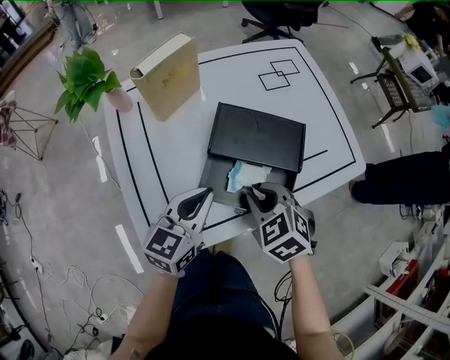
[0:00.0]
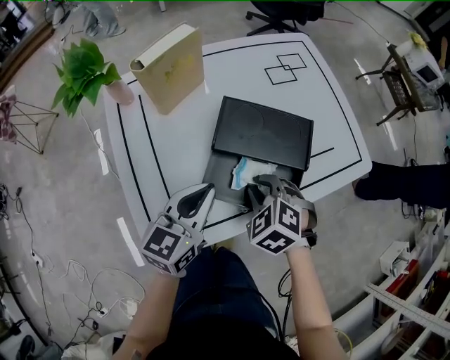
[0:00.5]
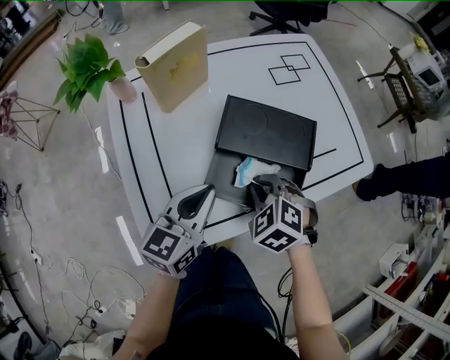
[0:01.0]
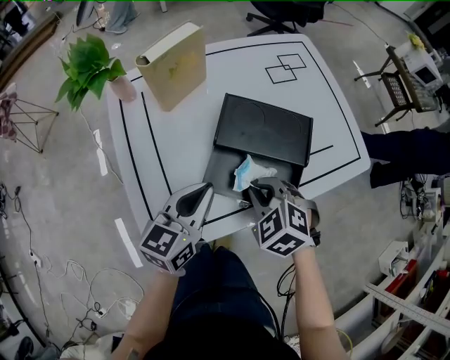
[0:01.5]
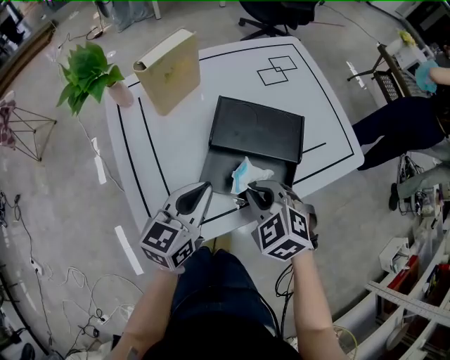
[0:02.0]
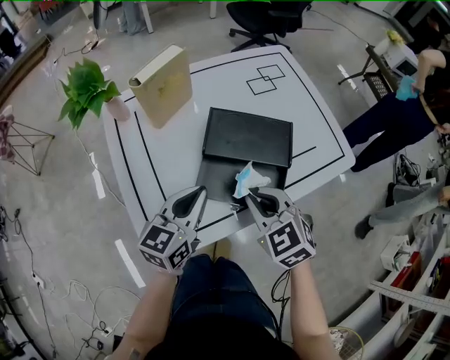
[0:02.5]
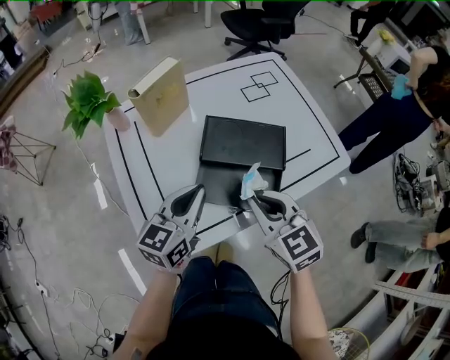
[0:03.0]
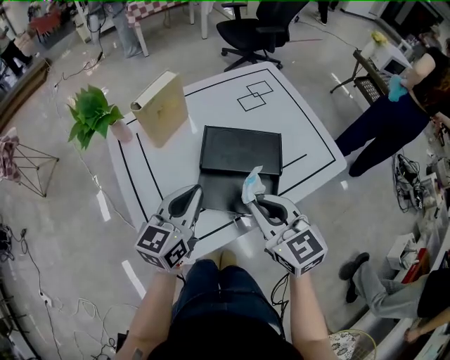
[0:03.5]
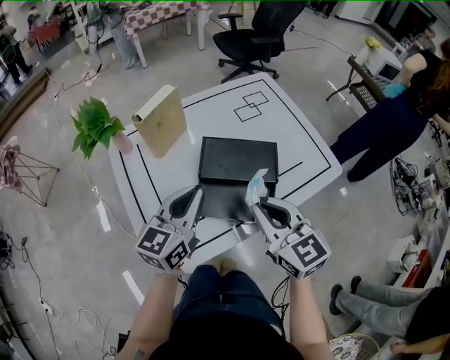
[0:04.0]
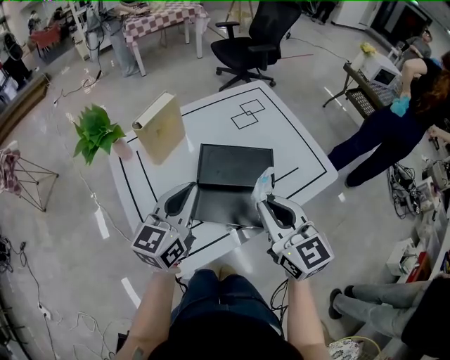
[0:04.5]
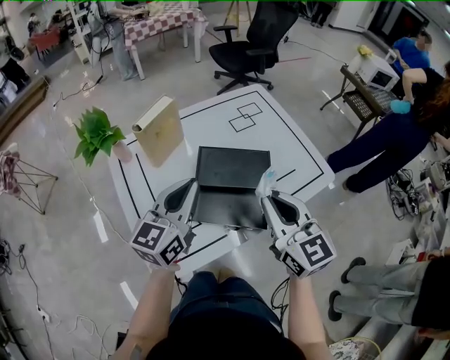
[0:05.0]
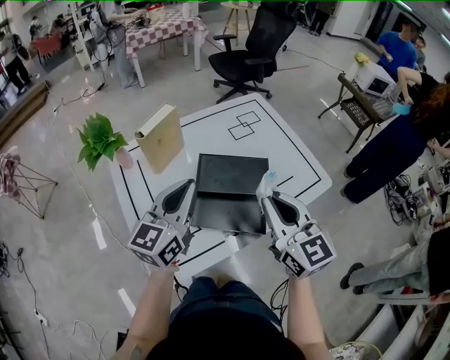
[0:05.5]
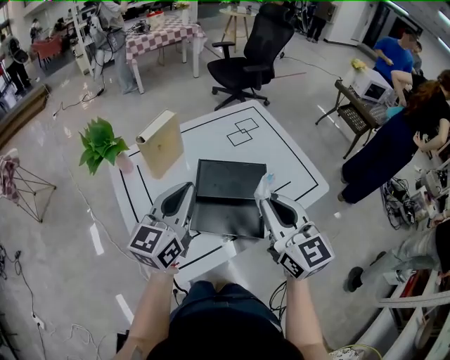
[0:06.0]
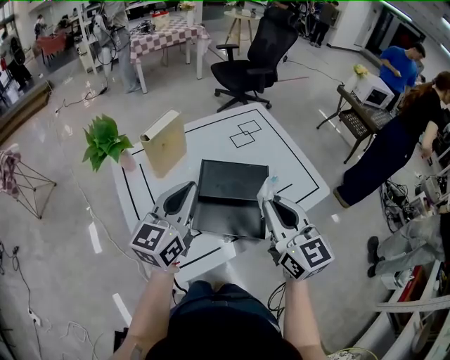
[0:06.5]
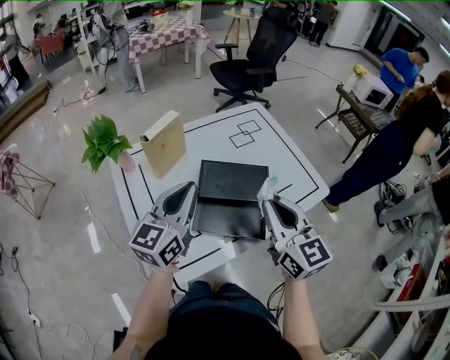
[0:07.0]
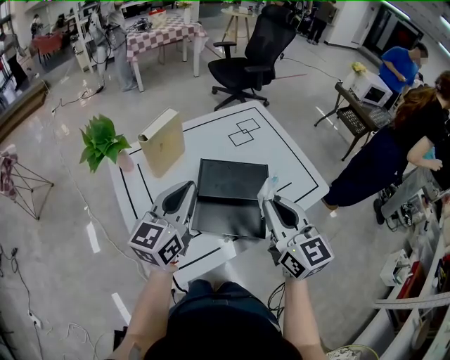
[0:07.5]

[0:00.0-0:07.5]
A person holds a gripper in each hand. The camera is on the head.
0:00.0 to 0:02.0: There are only small adjustments of the grippers.
0:02.0 to 0:04.0: The left gripper is displaced upward by some 10 cm. The right gripper shifts roughly 15 cm upward, and tilts its fingers about 40 degrees upward.
0:04.0 to 0:05.5: Both grippers move upward, about 5 cm.
0:05.5 to 0:07.5: Neither gripper changes place.

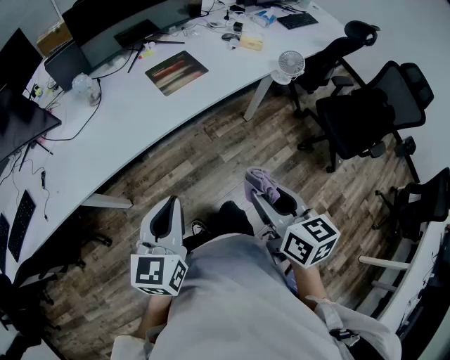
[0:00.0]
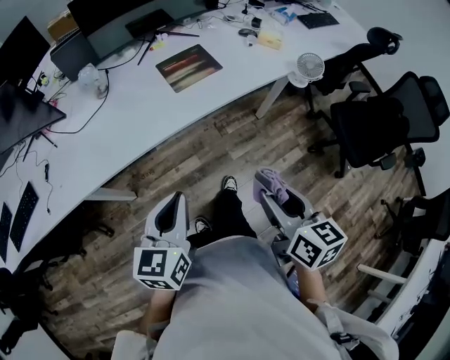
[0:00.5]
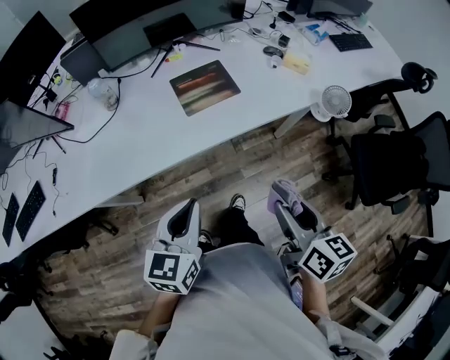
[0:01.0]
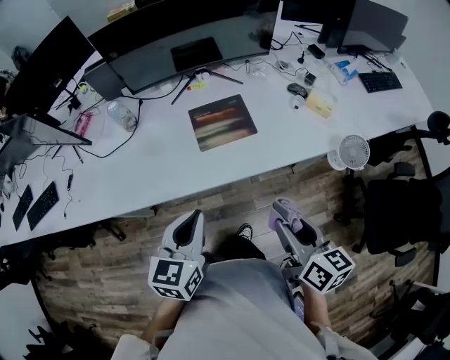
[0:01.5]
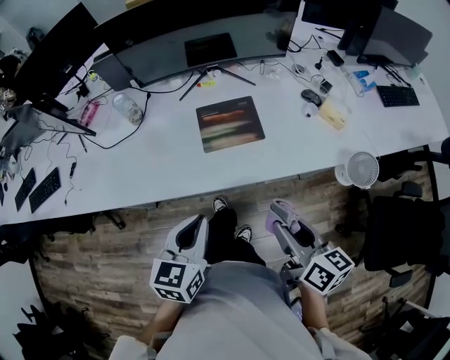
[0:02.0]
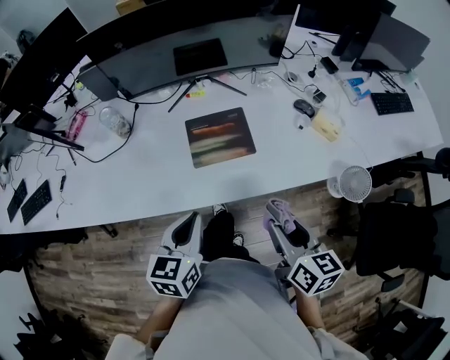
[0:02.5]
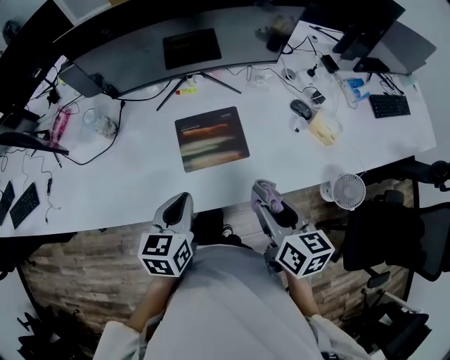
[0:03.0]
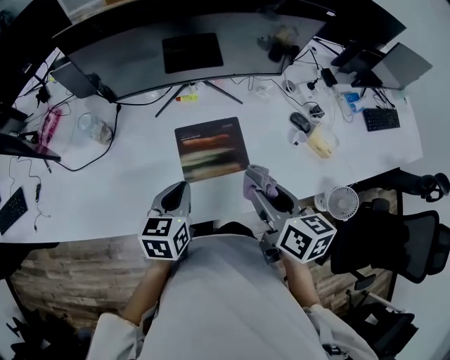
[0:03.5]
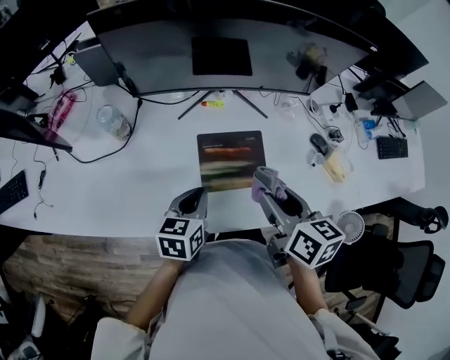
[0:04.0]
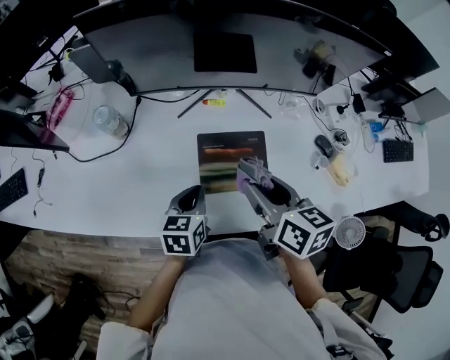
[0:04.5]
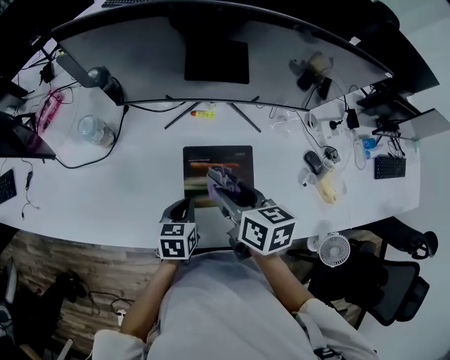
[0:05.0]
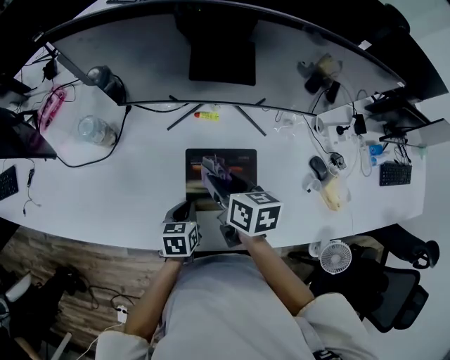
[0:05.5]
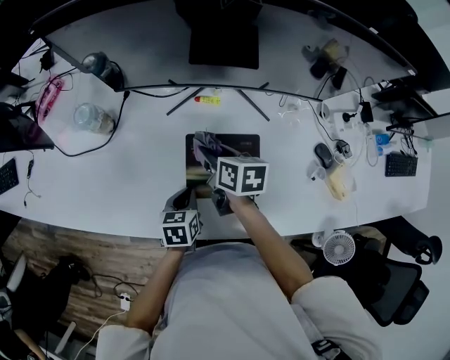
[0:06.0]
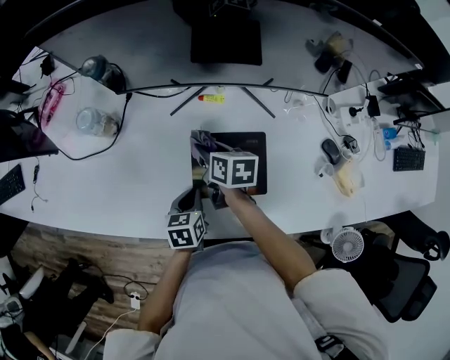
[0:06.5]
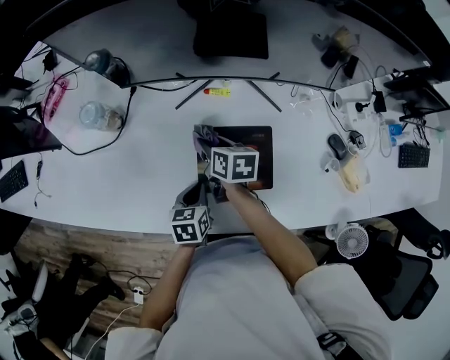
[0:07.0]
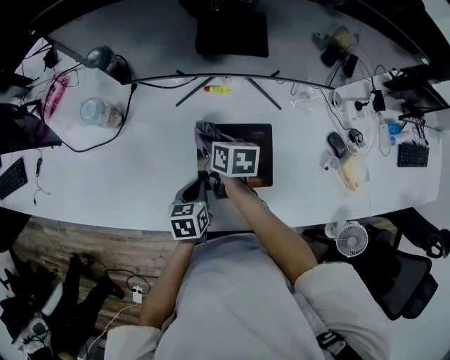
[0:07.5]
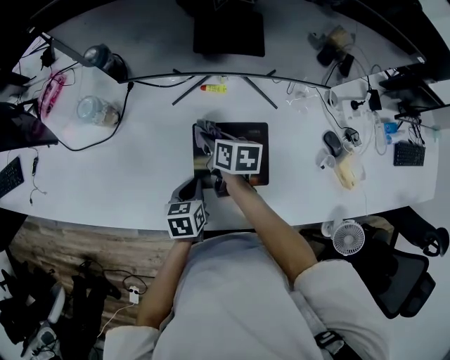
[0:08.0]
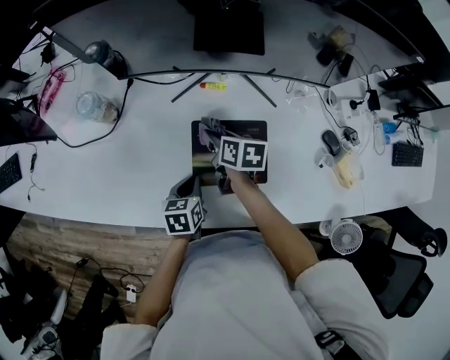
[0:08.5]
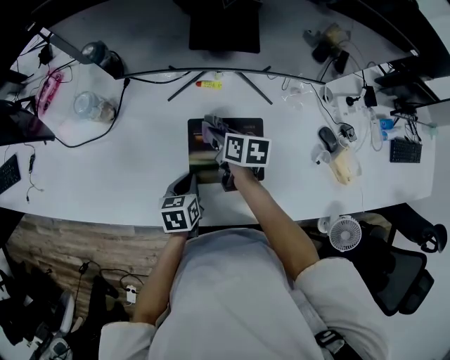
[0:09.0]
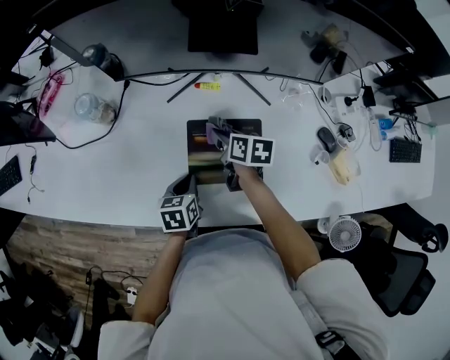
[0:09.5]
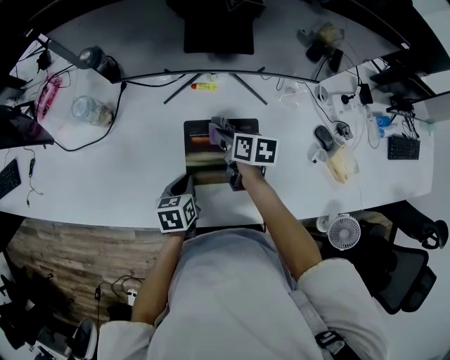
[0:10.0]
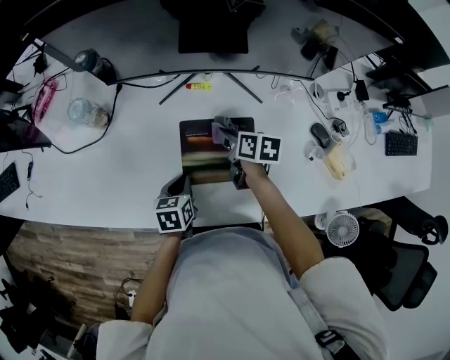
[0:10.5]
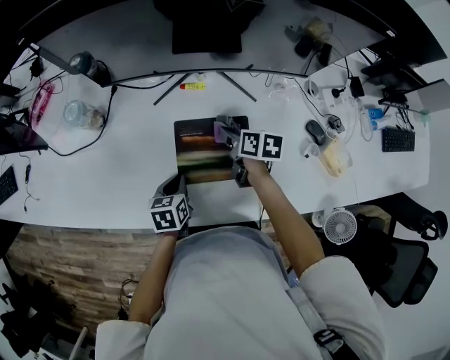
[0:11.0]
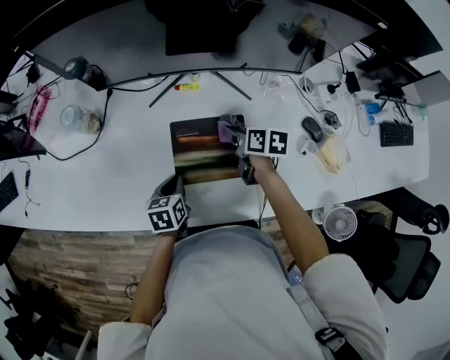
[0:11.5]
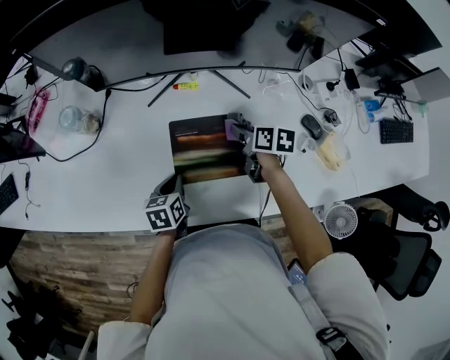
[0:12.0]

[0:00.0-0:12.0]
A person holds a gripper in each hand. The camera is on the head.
0:00.0 to 0:02.0: Both grippers move forward and to the right, approximately 30 cm. The left gripper turns by about 20 degrees. The right gripper rotates approximately 30 degrees.
0:02.0 to 0:04.0: The right gripper shifts about 30 cm forward. Meanwhile the left gripper goes roughly 25 cm forward and downward.
0:04.0 to 0:06.0: The left gripper travels downward by some 15 cm; the right gripper goes roughly 25 cm downward, forward and to the left.
0:06.0 to 0:08.0: The right gripper shifts by approximately 5 cm.
0:08.0 to 0:10.0: The right gripper heads to the right, covering approximately 5 cm.
0:10.0 to 0:12.0: The right gripper heads to the right, covering about 10 cm.

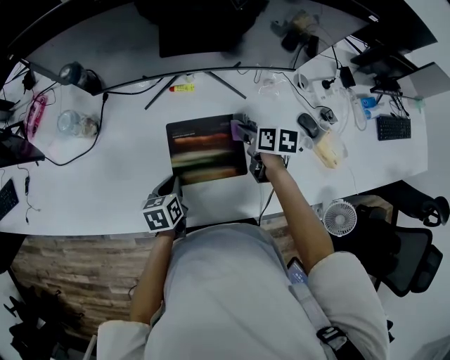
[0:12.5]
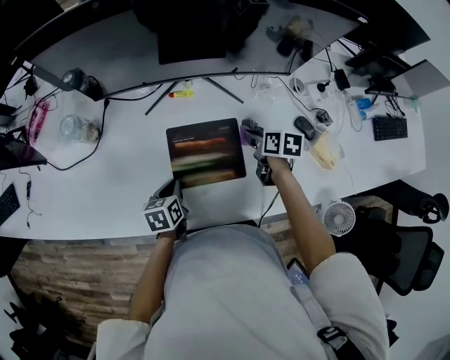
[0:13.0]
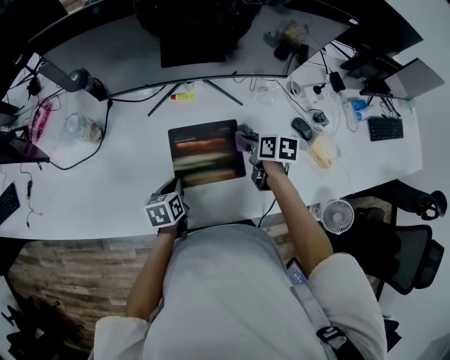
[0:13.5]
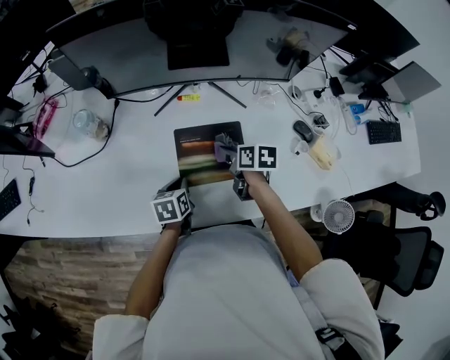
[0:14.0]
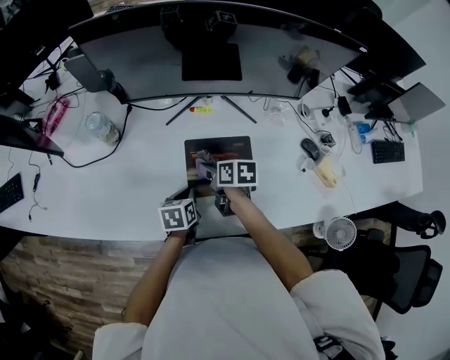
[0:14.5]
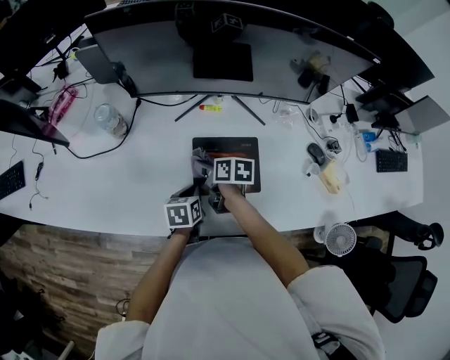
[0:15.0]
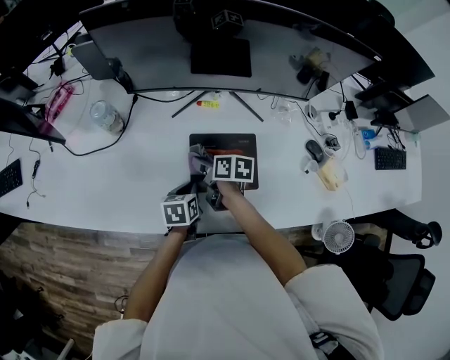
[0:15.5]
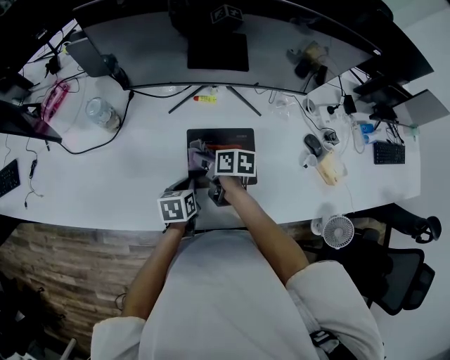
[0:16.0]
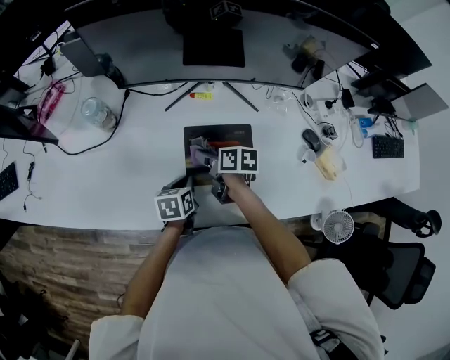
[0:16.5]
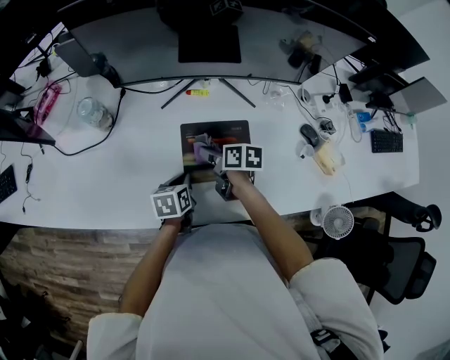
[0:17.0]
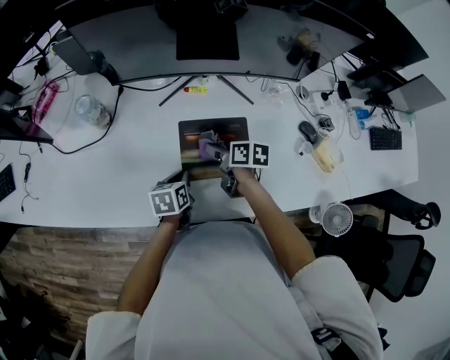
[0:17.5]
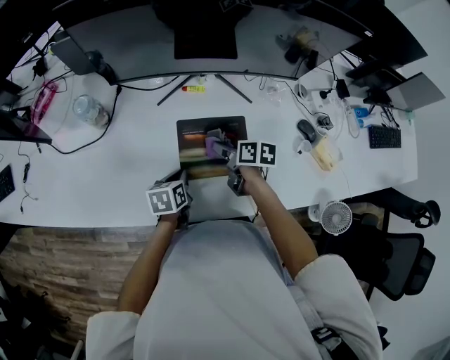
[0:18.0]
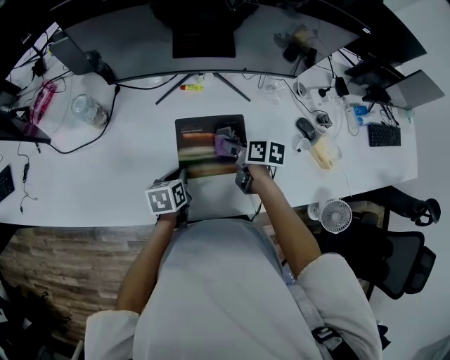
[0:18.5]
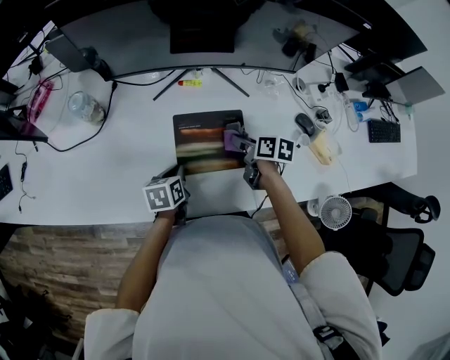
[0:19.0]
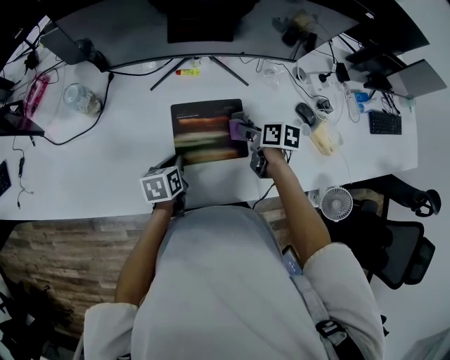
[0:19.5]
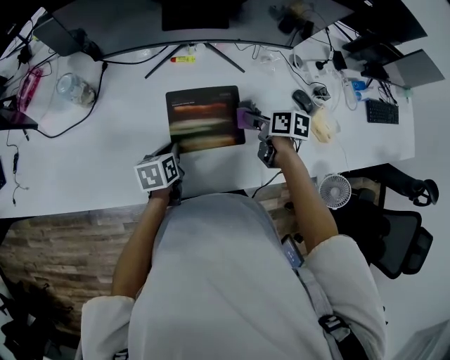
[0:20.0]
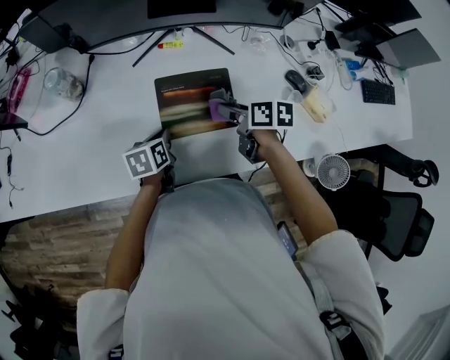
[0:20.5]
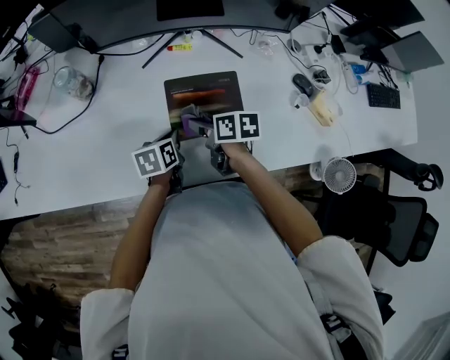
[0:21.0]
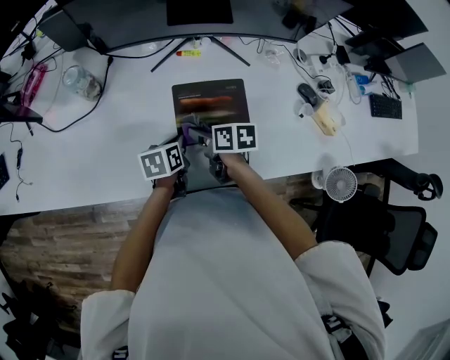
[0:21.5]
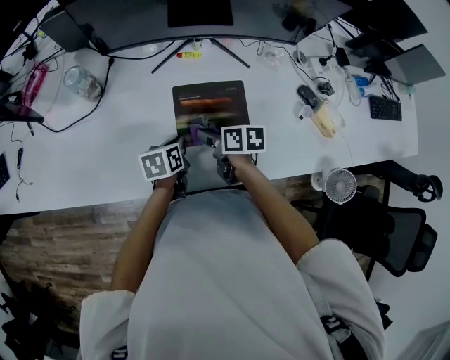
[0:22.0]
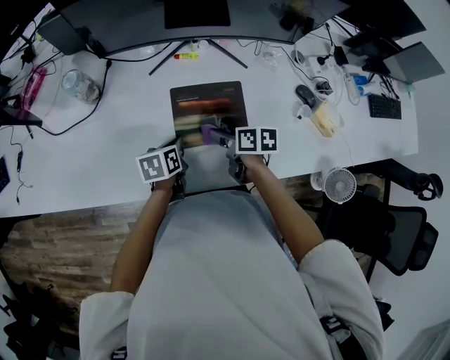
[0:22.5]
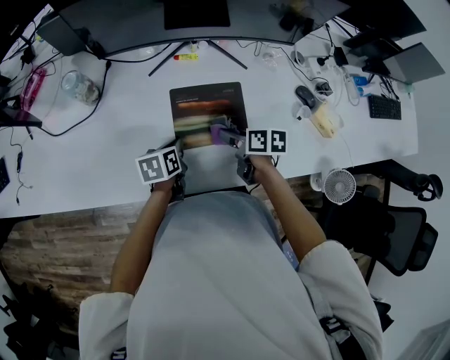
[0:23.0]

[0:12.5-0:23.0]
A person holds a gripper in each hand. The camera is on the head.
0:12.5 to 0:14.5: The right gripper goes roughly 20 cm to the left.
0:14.5 to 0:16.5: The grippers move only a little.
0:16.5 to 0:19.0: The right gripper shifts roughly 15 cm to the right.
0:19.0 to 0:21.0: The right gripper is displaced to the left by approximately 15 cm.
0:21.0 to 0:23.0: The right gripper travels to the right by roughly 10 cm.
